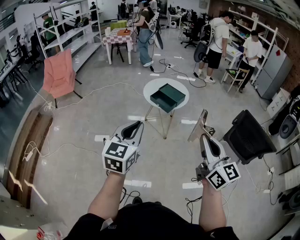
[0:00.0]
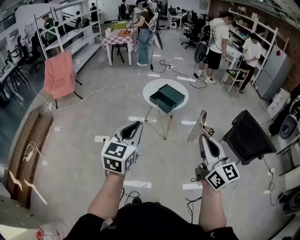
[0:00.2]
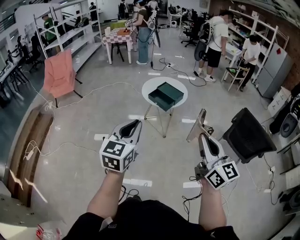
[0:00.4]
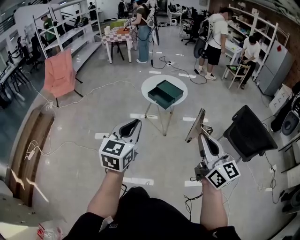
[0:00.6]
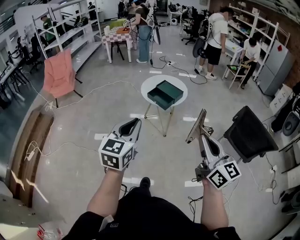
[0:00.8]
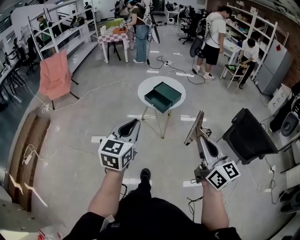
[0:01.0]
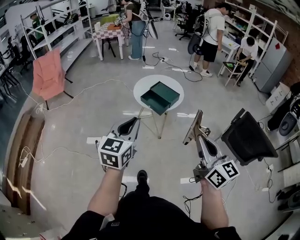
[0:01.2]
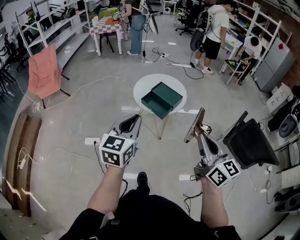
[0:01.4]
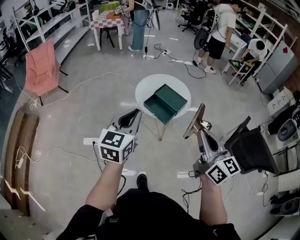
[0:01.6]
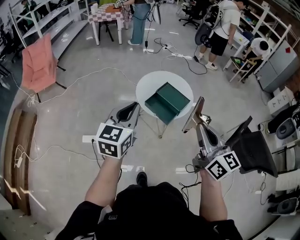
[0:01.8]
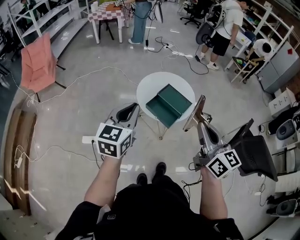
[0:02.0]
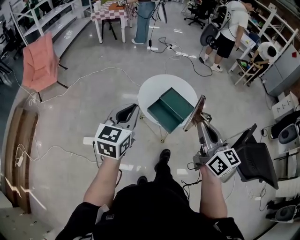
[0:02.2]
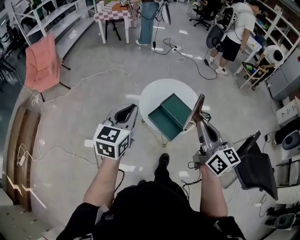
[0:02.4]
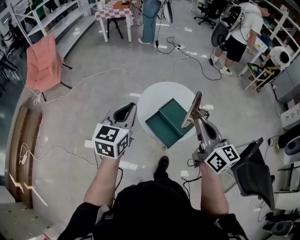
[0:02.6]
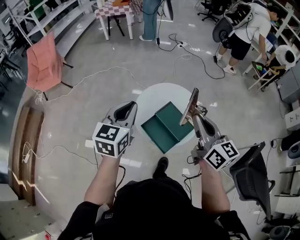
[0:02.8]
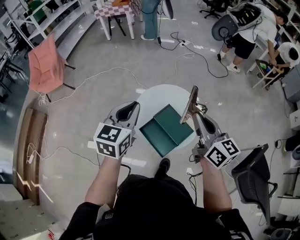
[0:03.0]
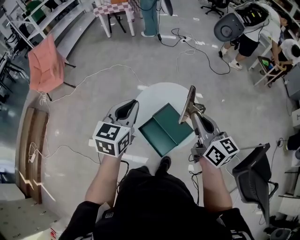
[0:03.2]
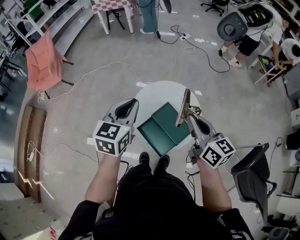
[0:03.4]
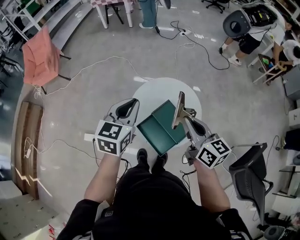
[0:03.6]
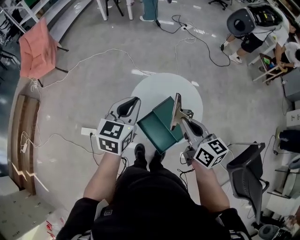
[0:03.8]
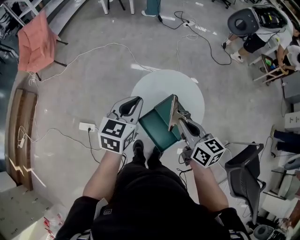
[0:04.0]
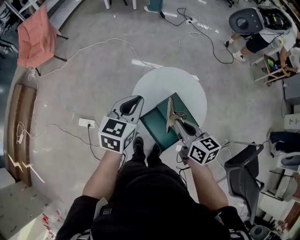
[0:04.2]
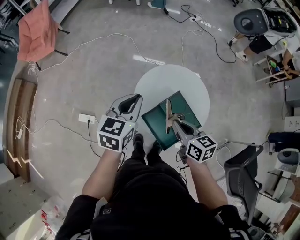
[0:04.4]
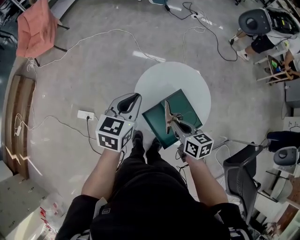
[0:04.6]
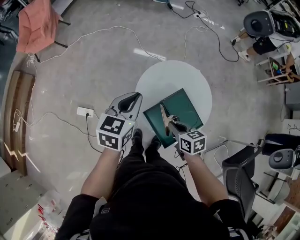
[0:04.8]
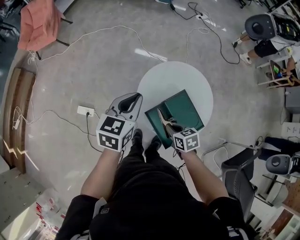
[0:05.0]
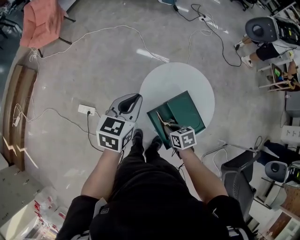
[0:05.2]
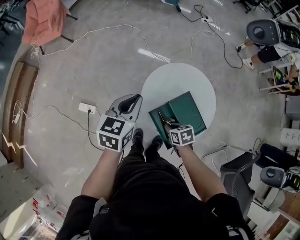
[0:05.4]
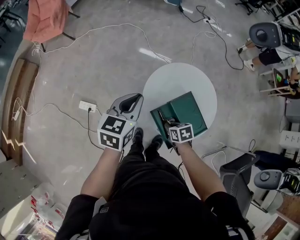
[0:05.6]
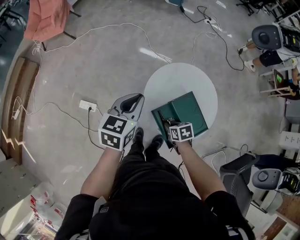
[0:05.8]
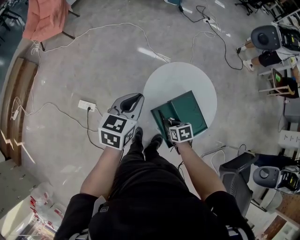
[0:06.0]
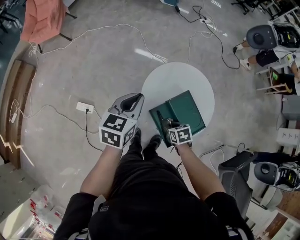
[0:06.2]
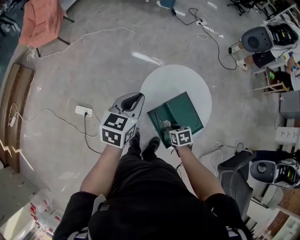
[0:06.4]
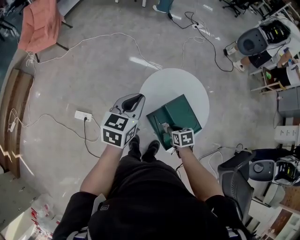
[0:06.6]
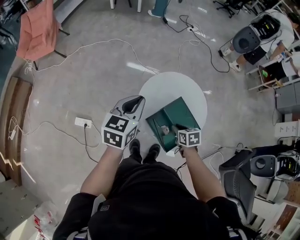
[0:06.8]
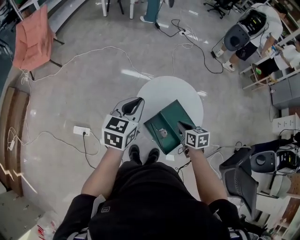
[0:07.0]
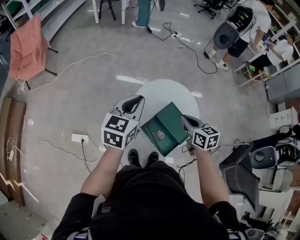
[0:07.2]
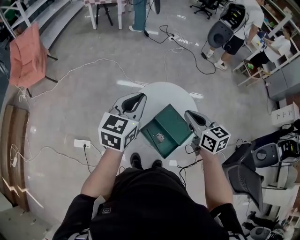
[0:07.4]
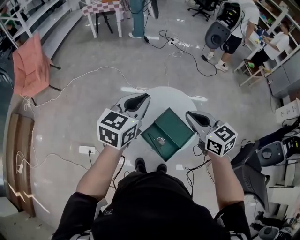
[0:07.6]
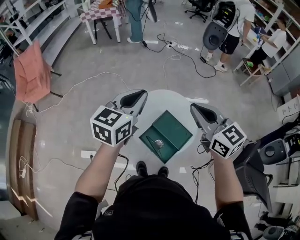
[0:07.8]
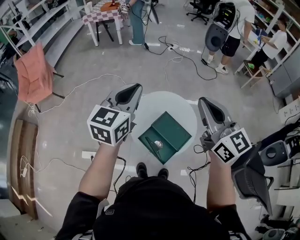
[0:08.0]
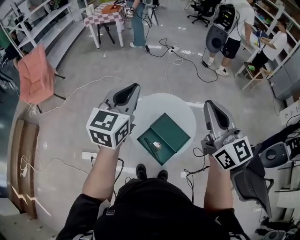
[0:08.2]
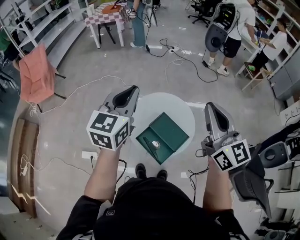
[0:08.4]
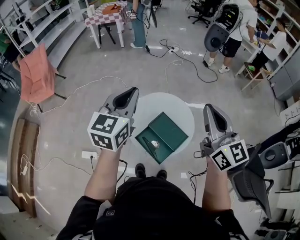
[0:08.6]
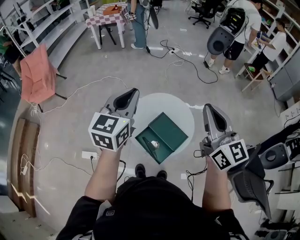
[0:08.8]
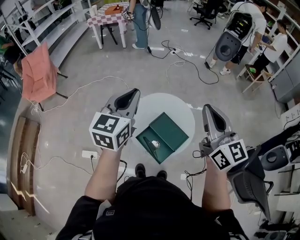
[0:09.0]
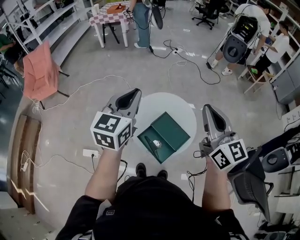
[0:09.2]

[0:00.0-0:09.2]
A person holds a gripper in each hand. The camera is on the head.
0:00.0 to 0:01.6: The two grippers go some 25 cm forward.
0:01.6 to 0:03.0: Both grippers move forward, about 35 cm.
0:03.0 to 0:04.6: The left gripper moves downward and to the left, roughly 15 cm. Meanwhile the right gripper shifts some 25 cm downward and to the left, and tips its fingers downward by roughly 30 degrees.
0:04.6 to 0:06.2: The left gripper ends up roughly 5 cm from where it was; the right gripper moves downward, some 15 cm, tilts its fingers about 30 degrees downward, and opens.
0:06.2 to 0:07.6: The left gripper travels upward and to the right by about 20 cm, and swivels roughly 20 degrees. The right gripper shifts some 35 cm upward, tips its fingers upward by approximately 40 degrees, and closes up.
0:07.6 to 0:09.2: The right gripper shifts some 15 cm upward and to the right, and changes its angle by about 30 degrees; the left gripper travels upward by approximately 5 cm.

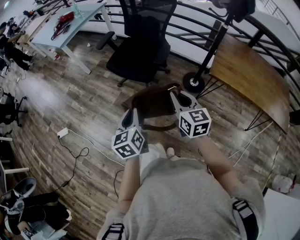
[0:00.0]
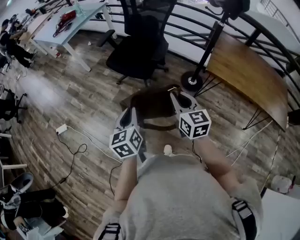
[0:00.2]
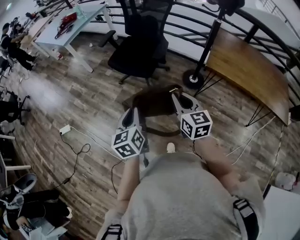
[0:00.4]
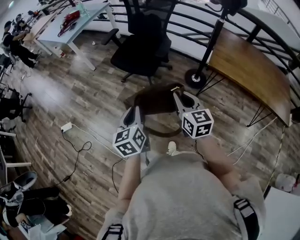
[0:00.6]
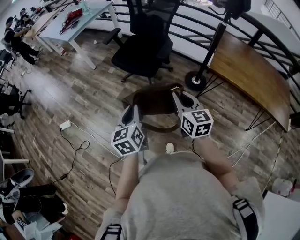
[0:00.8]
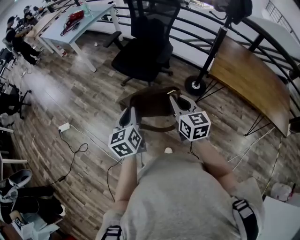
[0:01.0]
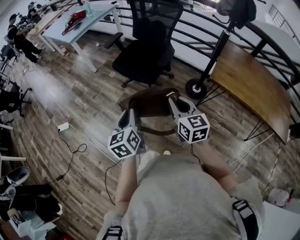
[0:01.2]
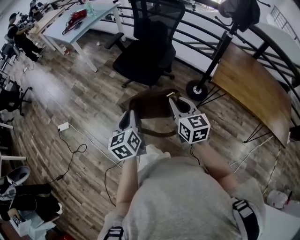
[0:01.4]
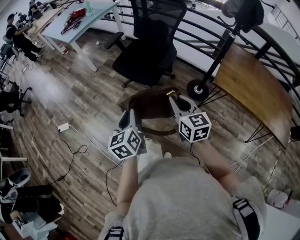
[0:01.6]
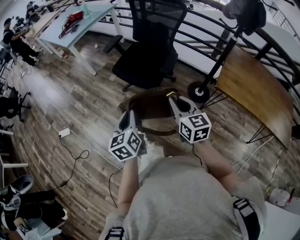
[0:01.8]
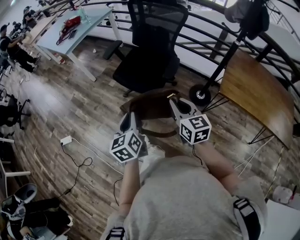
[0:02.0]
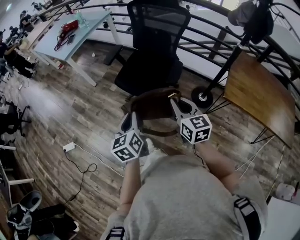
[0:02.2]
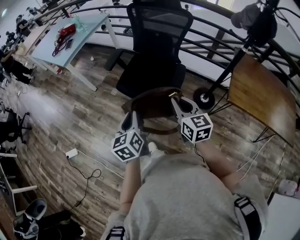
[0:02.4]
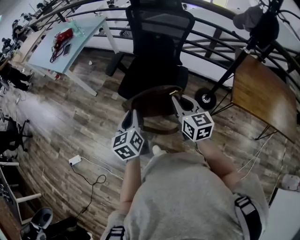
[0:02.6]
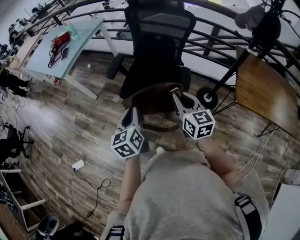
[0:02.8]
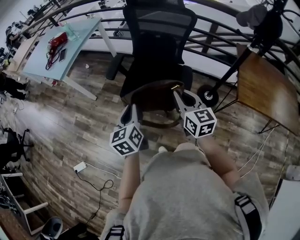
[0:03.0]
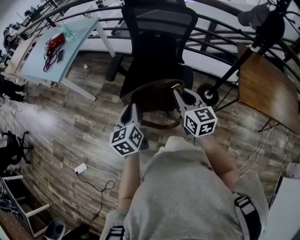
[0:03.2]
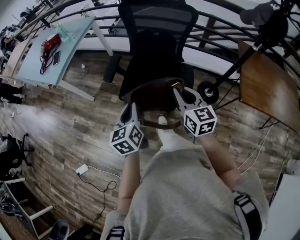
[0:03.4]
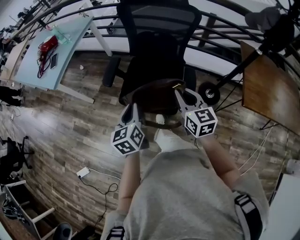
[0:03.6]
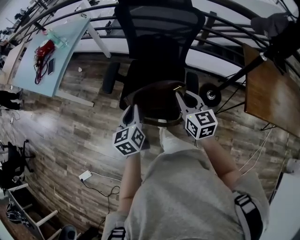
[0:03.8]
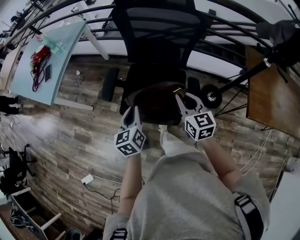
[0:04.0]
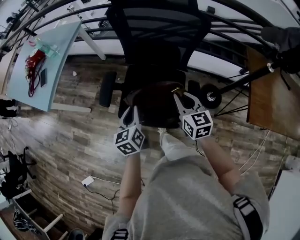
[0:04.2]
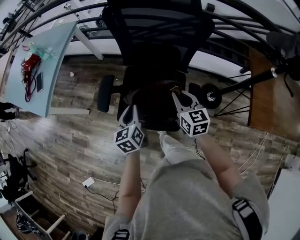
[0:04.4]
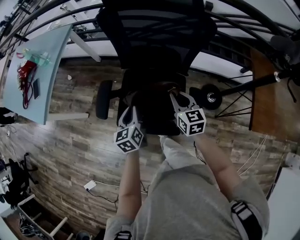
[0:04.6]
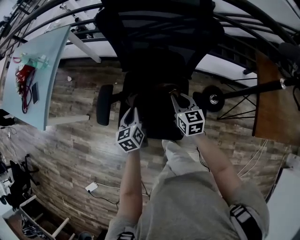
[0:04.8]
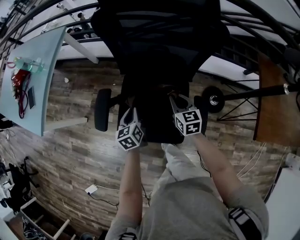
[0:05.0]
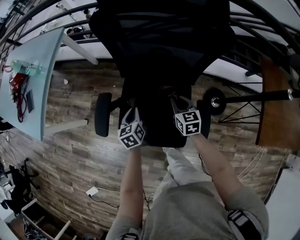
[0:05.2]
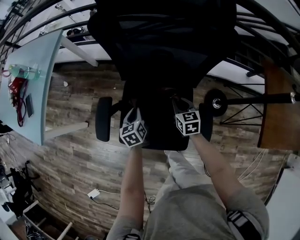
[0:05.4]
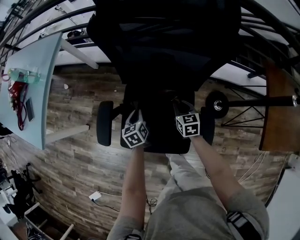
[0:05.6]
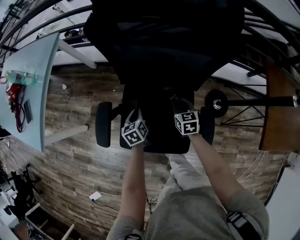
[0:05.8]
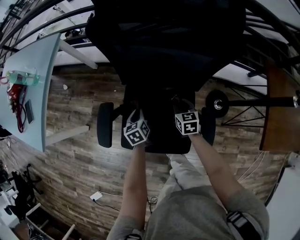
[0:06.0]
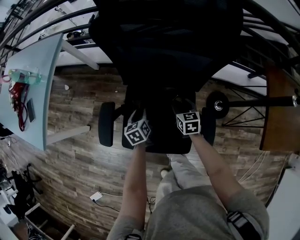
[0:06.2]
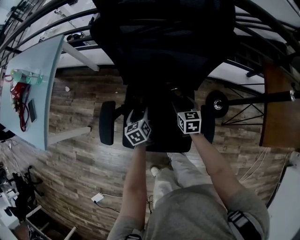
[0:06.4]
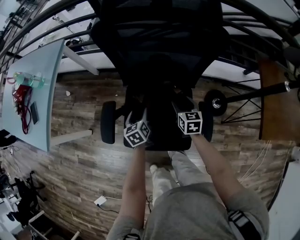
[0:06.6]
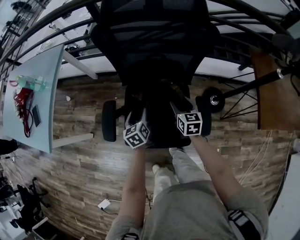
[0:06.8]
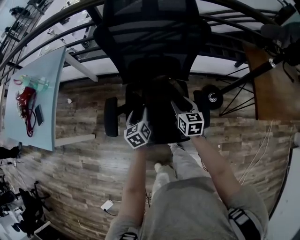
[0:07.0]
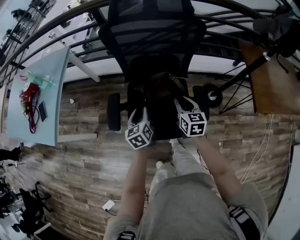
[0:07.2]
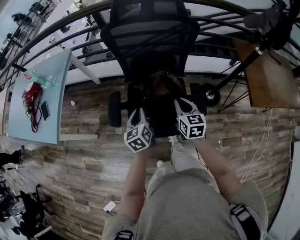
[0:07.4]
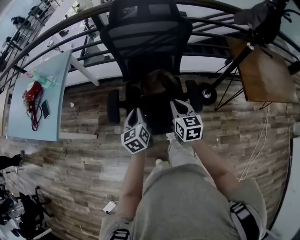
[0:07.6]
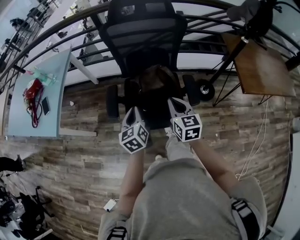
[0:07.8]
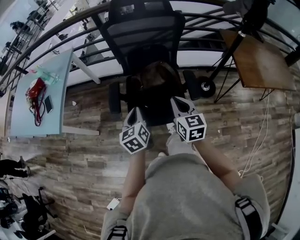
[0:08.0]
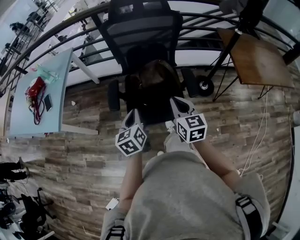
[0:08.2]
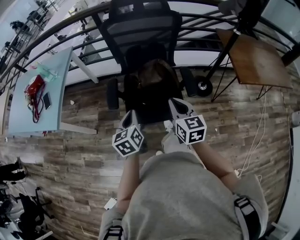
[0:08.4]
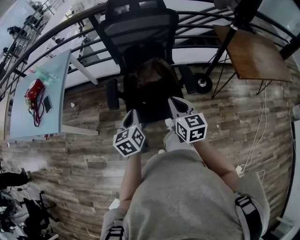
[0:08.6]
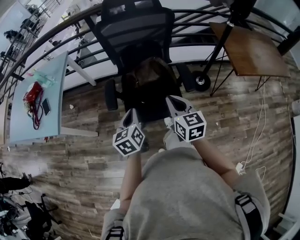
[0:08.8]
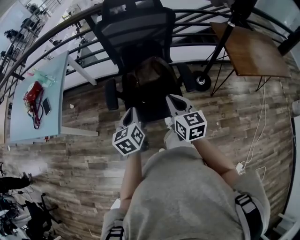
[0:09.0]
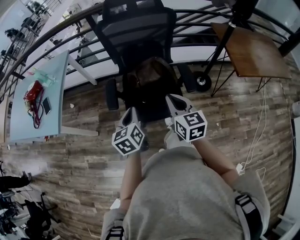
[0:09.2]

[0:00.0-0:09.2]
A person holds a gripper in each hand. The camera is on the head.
0:00.0 to 0:01.6: The left gripper reaches about 10 cm backward, then returns; the right gripper goes backward and returns, approximately 10 cm each way.
0:01.6 to 0:03.0: Both grippers travel together forward, some 30 cm.
0:03.0 to 0:04.6: Both grippers travel together forward and downward, approximately 35 cm.
0:04.6 to 0:06.2: The grippers both shift downward and forward by approximately 20 cm. The right gripper opens.
0:06.2 to 0:07.6: Both grippers move upward and backward, roughly 30 cm. The left gripper changes its angle by about 20 degrees, and opens and closes again. The right gripper changes its angle by roughly 20 degrees, and closes up.
0:07.6 to 0:09.2: The grippers both shift backward and upward by about 15 cm.

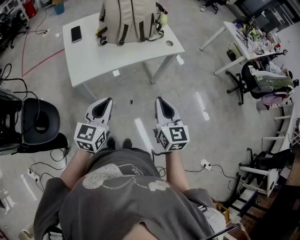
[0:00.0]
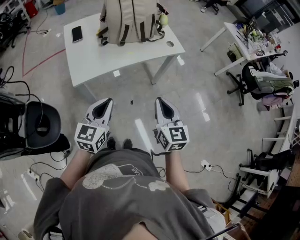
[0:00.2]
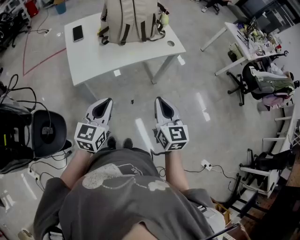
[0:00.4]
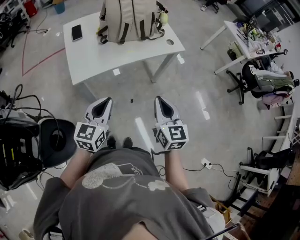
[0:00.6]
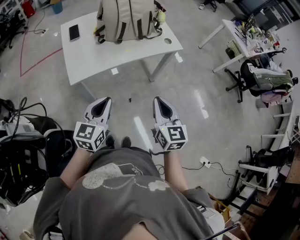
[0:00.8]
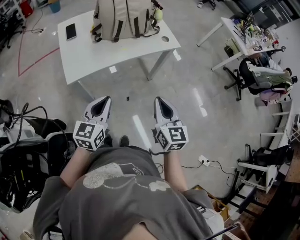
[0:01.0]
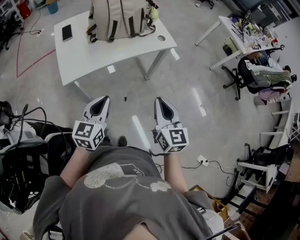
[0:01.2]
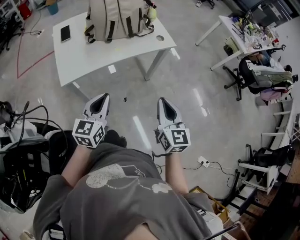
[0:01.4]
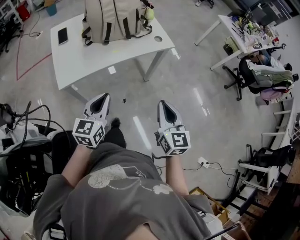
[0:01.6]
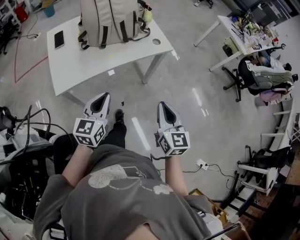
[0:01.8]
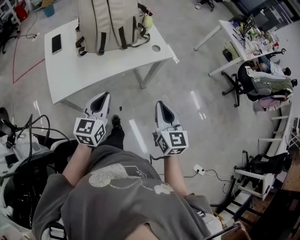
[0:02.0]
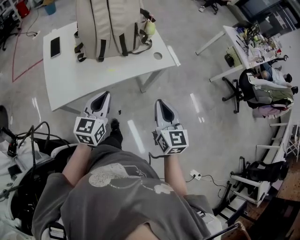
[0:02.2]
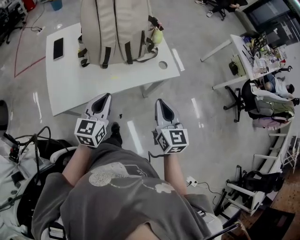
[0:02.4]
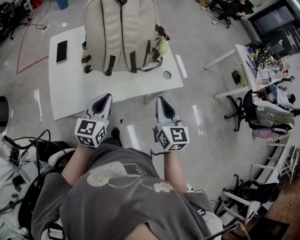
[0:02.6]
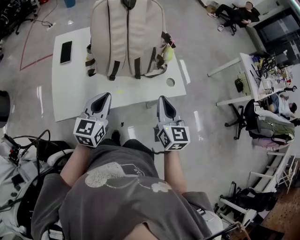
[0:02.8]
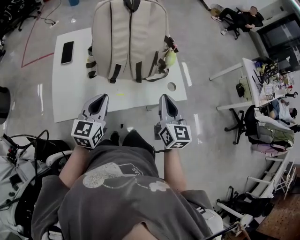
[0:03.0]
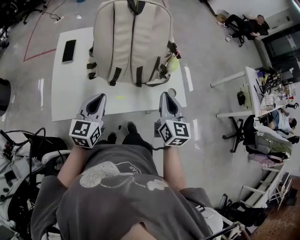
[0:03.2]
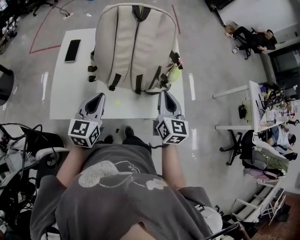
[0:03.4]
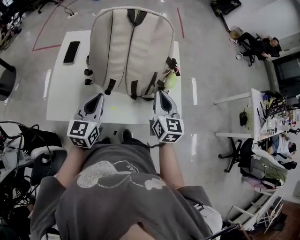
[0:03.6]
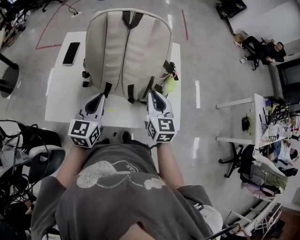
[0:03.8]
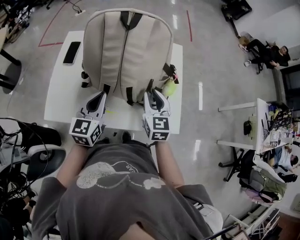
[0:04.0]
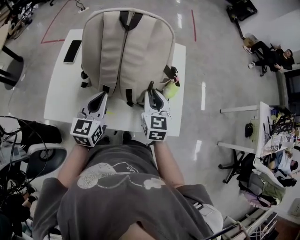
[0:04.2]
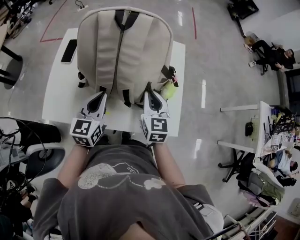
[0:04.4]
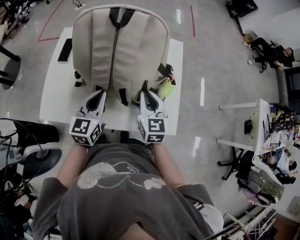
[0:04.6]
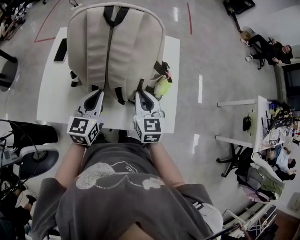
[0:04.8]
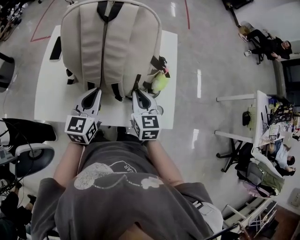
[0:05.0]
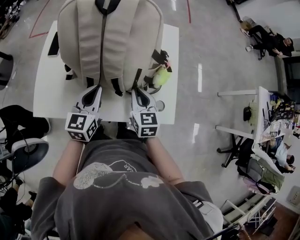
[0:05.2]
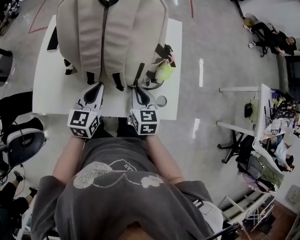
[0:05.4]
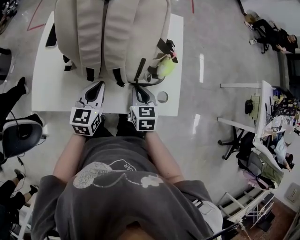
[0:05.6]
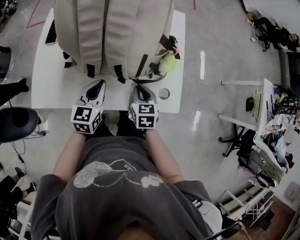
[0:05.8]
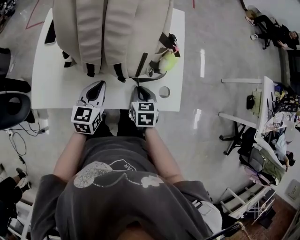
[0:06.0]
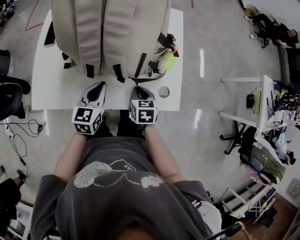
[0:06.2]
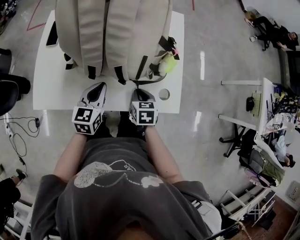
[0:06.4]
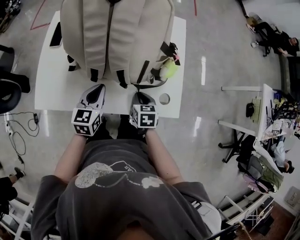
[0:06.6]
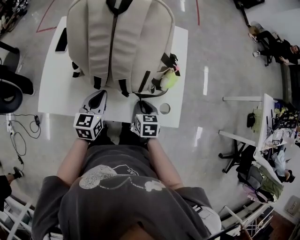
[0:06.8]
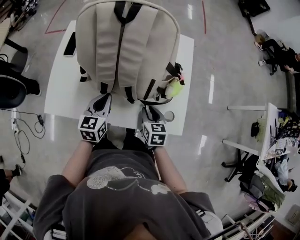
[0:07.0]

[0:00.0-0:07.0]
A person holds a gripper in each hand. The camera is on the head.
0:00.0 to 0:01.4: The two grippers go some 5 cm to the right.
0:01.4 to 0:02.8: The grippers both shift forward by approximately 30 cm.
0:02.8 to 0:04.2: The left gripper goes roughly 10 cm forward, and swivels approximately 20 degrees. Meanwhile the right gripper heads forward, covering some 20 cm, and changes its angle by approximately 20 degrees.
0:04.2 to 0:05.6: The left gripper shifts some 10 cm downward; the right gripper travels downward and backward by about 15 cm.
0:05.6 to 0:07.0: There are only small adjustments of the grippers.
